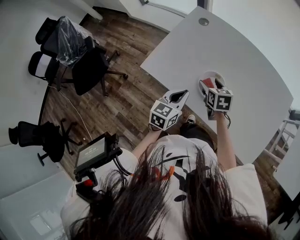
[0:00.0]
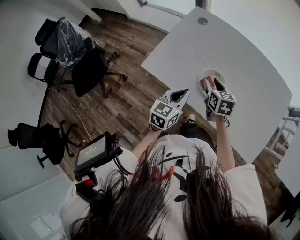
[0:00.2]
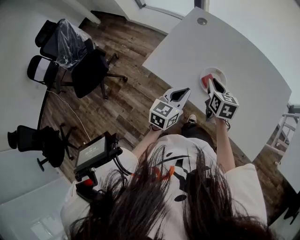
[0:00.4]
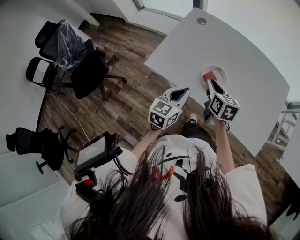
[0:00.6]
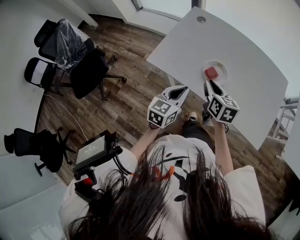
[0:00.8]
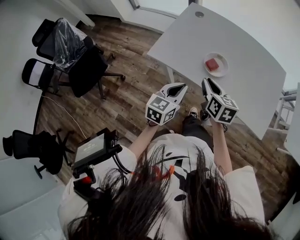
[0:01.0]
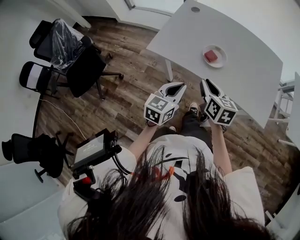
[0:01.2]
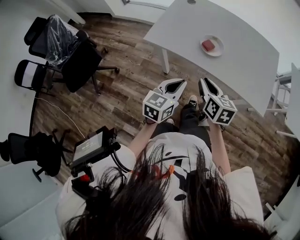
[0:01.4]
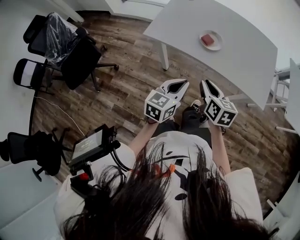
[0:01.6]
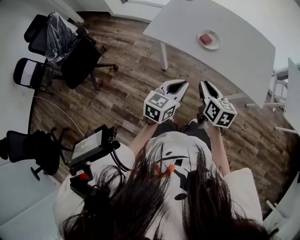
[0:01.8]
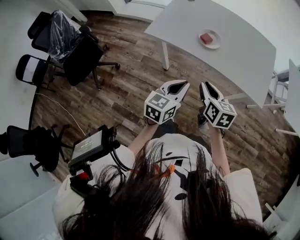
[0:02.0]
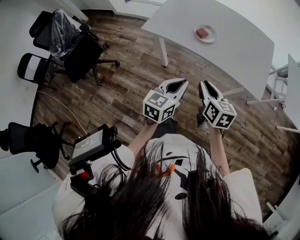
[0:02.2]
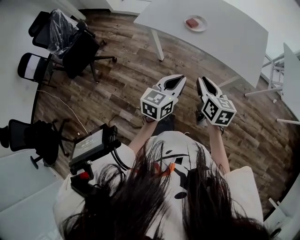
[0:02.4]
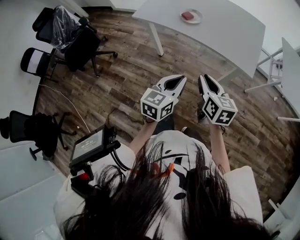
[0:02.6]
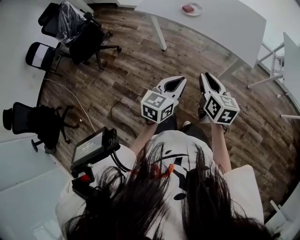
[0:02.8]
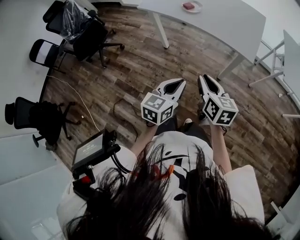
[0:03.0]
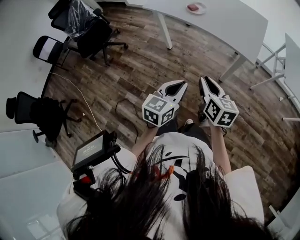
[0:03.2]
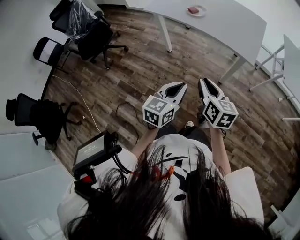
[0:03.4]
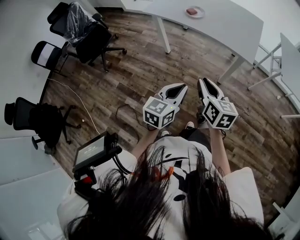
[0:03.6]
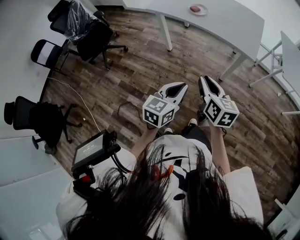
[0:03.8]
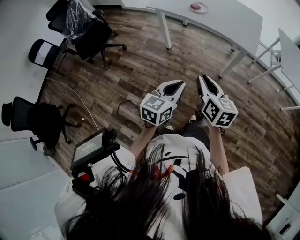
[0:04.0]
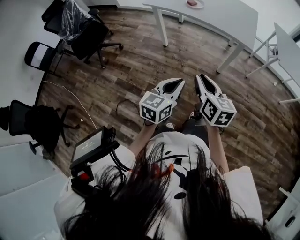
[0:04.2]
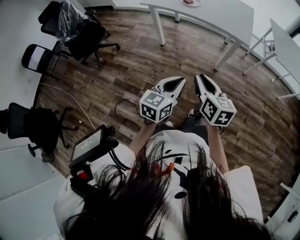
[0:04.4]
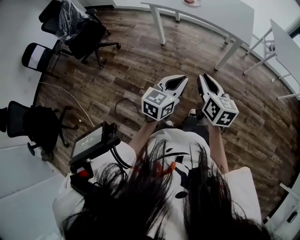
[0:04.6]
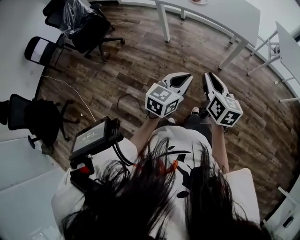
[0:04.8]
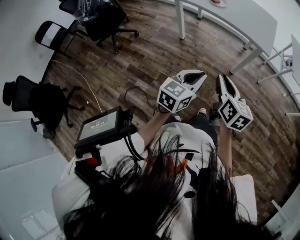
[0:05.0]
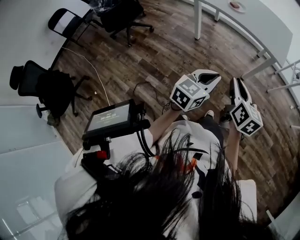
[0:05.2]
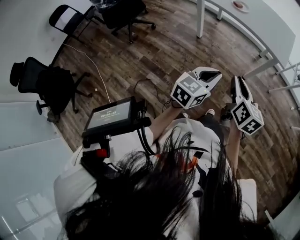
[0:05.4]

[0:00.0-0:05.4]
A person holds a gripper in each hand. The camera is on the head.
0:00.0 to 0:01.4: Both grippers move backward, about 25 cm. The right gripper swivels approximately 20 degrees, and closes its fingers.
0:01.4 to 0:02.8: Both grippers move backward and to the right, some 30 cm.
0:02.8 to 0:04.0: Both grippers travel together backward and to the left, roughly 15 cm.
0:04.0 to 0:05.4: The right gripper goes roughly 5 cm backward.

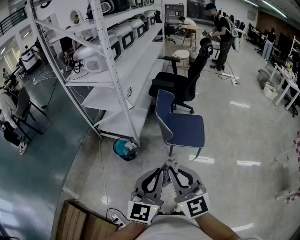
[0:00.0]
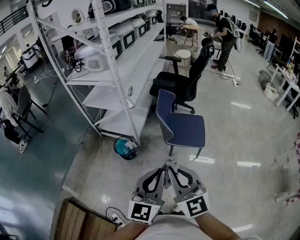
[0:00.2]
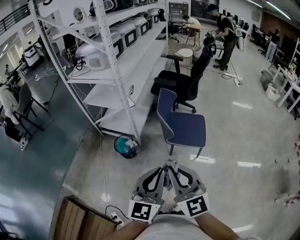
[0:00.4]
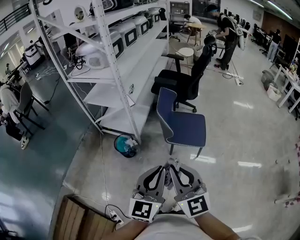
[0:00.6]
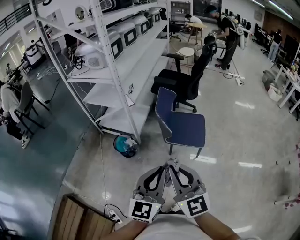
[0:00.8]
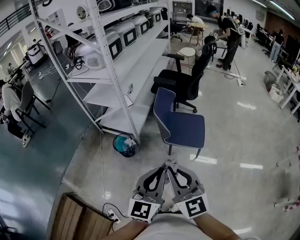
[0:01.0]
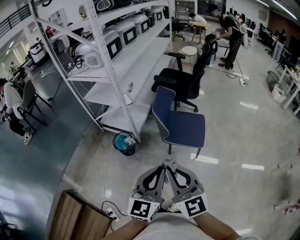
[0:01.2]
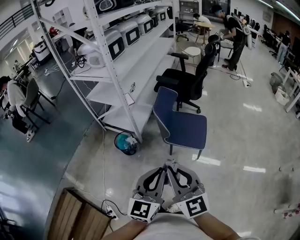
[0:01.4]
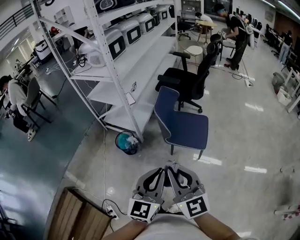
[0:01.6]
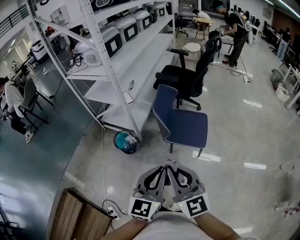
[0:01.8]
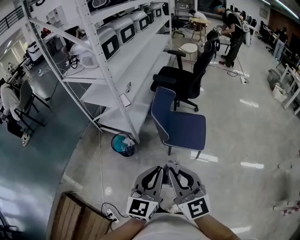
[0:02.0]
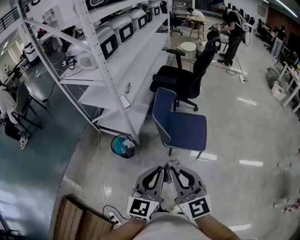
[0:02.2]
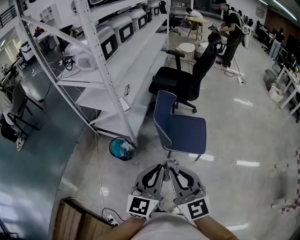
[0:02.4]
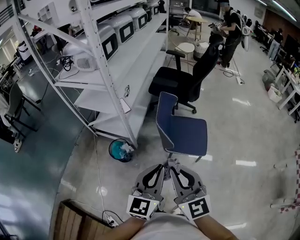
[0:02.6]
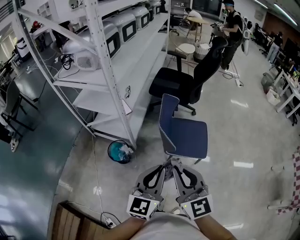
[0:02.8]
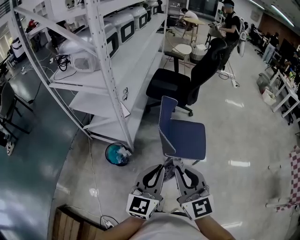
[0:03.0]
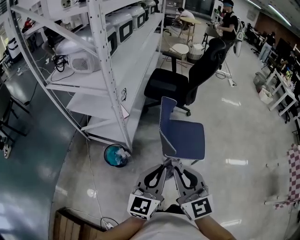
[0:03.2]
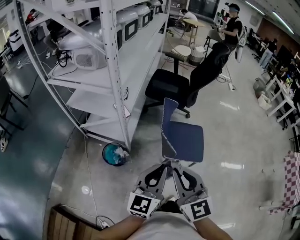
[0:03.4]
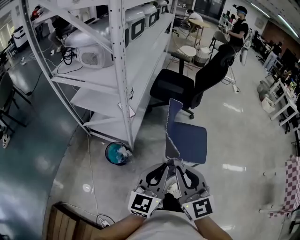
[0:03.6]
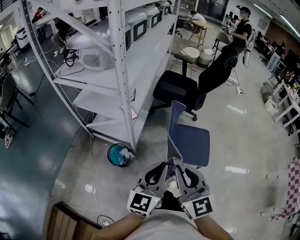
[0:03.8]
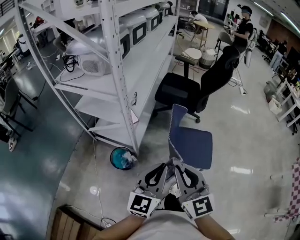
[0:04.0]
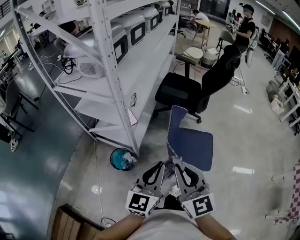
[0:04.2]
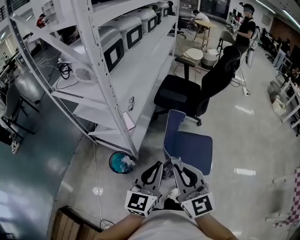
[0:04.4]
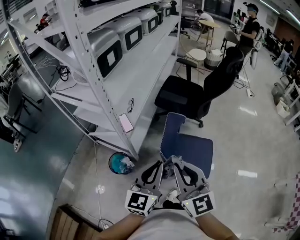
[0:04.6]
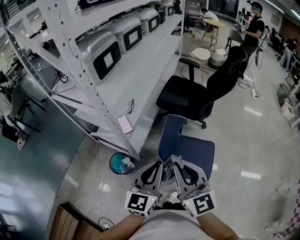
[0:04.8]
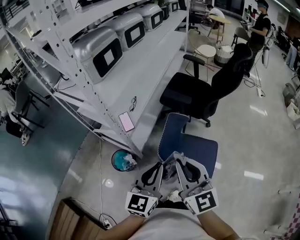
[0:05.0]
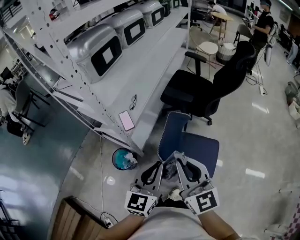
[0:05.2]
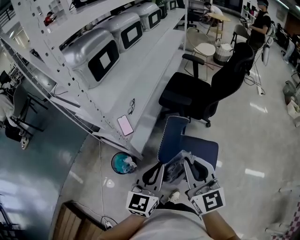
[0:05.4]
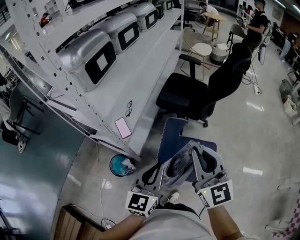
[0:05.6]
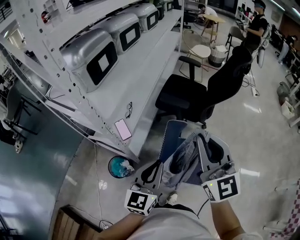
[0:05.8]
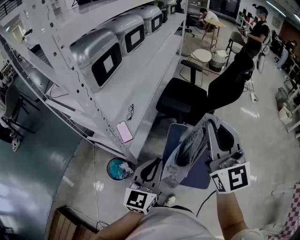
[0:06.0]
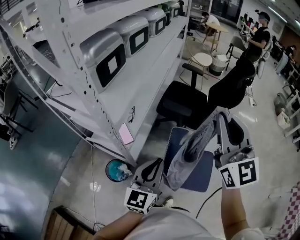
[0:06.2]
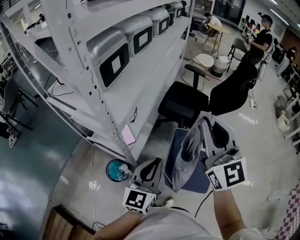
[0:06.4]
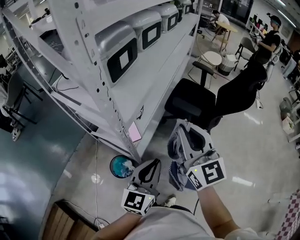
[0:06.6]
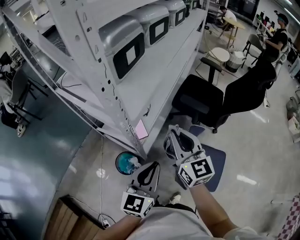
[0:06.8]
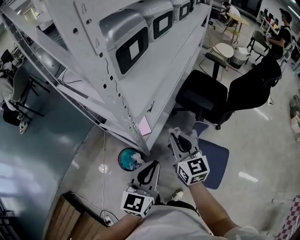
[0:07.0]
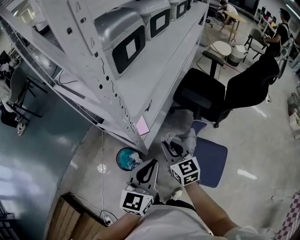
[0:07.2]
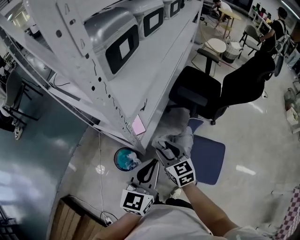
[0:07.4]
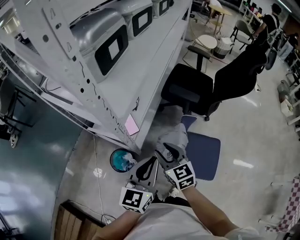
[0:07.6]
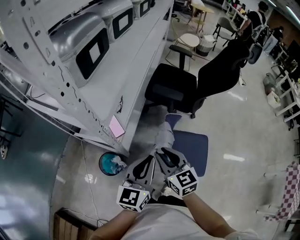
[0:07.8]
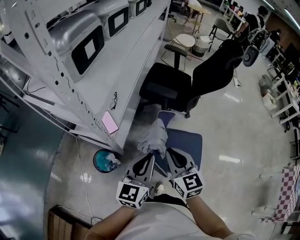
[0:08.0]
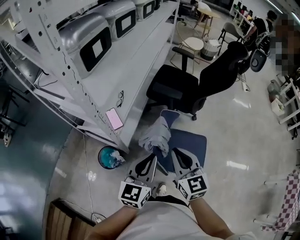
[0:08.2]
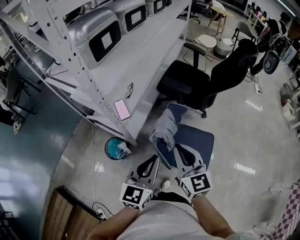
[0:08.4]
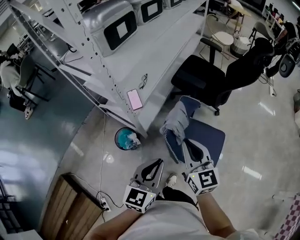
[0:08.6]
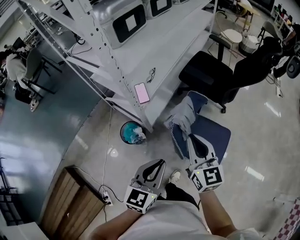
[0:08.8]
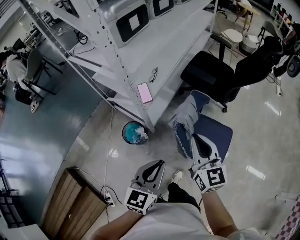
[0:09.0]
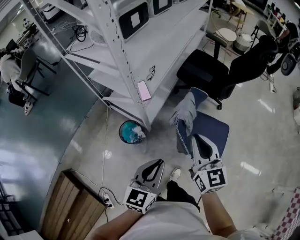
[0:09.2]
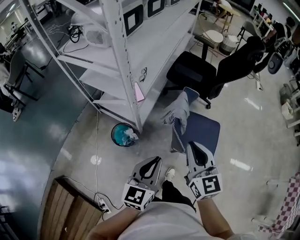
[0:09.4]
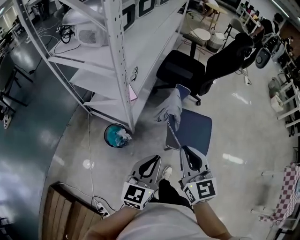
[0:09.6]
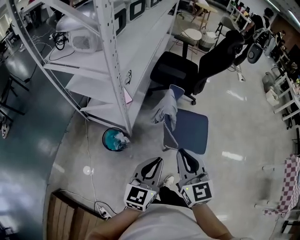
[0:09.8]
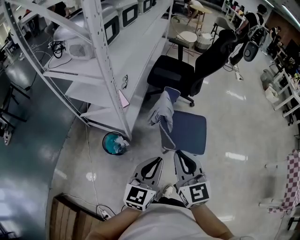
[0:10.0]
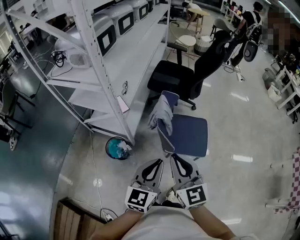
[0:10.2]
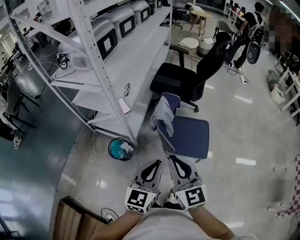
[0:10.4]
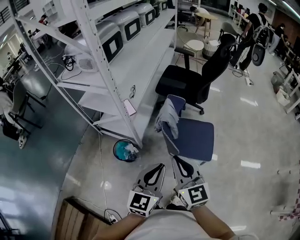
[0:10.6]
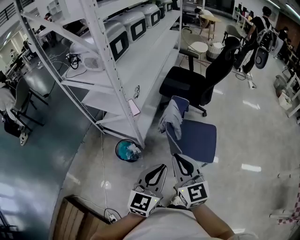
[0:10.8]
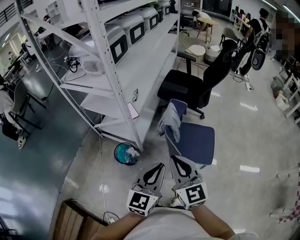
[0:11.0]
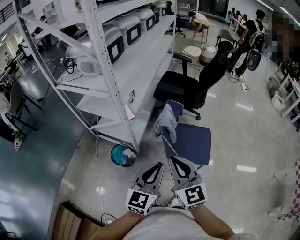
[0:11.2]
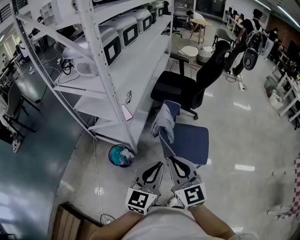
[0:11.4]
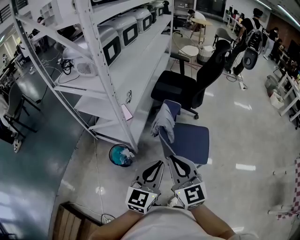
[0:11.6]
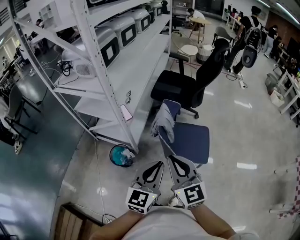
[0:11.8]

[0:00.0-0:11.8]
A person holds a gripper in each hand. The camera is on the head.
0:00.0 to 0:01.4: The two grippers go some 10 cm to the right.
0:01.4 to 0:03.0: The two grippers go some 25 cm forward and to the left.
0:03.0 to 0:04.4: The grippers both shift forward by about 10 cm.
0:04.4 to 0:06.0: The right gripper goes roughly 30 cm forward, upward and to the right, while the left gripper travels forward by some 15 cm.
0:06.0 to 0:07.4: The left gripper moves to the left, about 10 cm; the right gripper heads downward and to the left, covering approximately 40 cm, angles its fingers downward, by roughly 40 degrees, and opens.
0:07.4 to 0:08.8: The right gripper travels to the right, backward and upward by roughly 25 cm, and closes up. Meanwhile the left gripper travels backward and to the right by some 20 cm.
0:08.8 to 0:10.4: The right gripper goes some 20 cm backward. The left gripper is displaced backward by some 10 cm.
0:10.4 to 0:11.8: The grippers make only small movements.

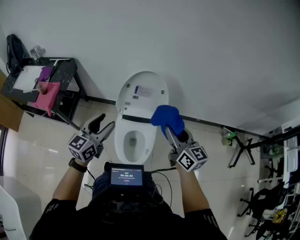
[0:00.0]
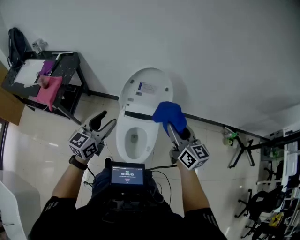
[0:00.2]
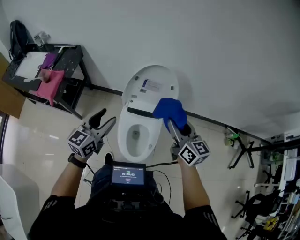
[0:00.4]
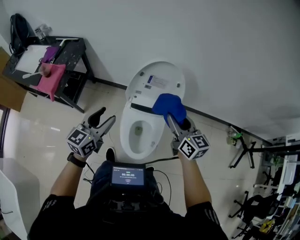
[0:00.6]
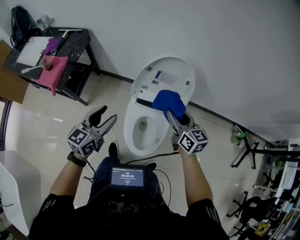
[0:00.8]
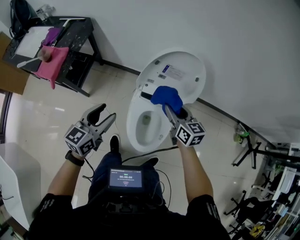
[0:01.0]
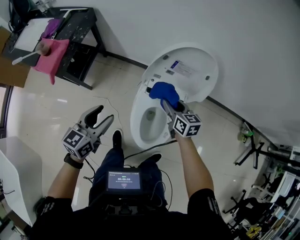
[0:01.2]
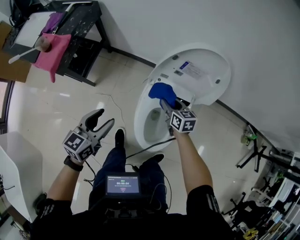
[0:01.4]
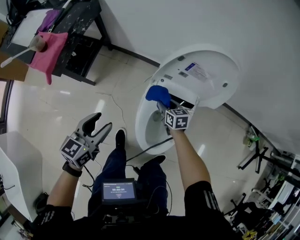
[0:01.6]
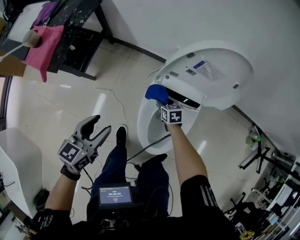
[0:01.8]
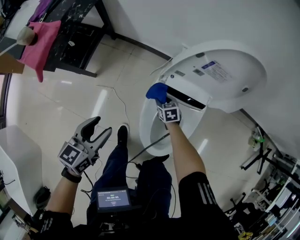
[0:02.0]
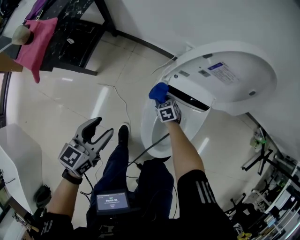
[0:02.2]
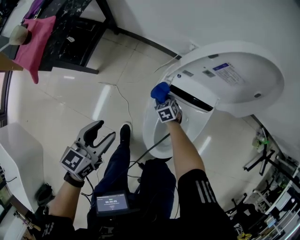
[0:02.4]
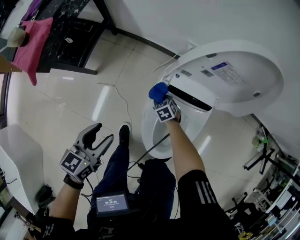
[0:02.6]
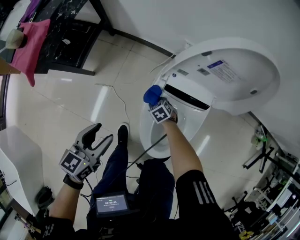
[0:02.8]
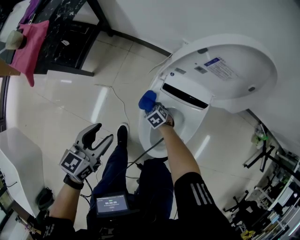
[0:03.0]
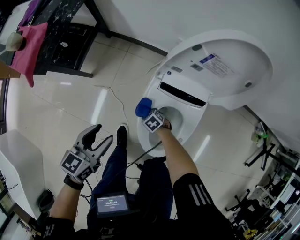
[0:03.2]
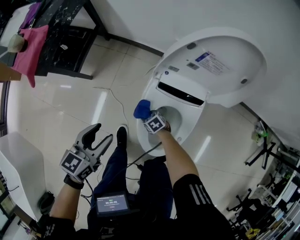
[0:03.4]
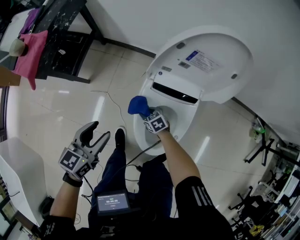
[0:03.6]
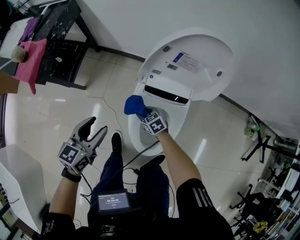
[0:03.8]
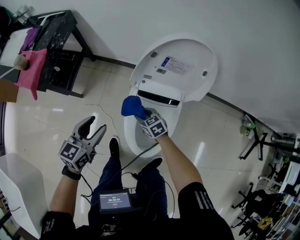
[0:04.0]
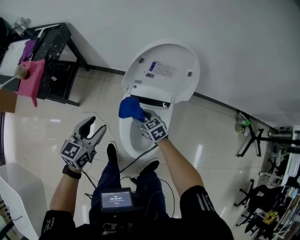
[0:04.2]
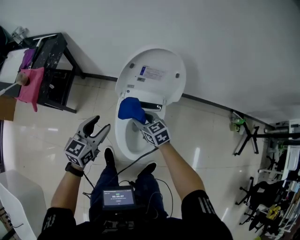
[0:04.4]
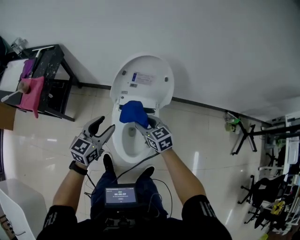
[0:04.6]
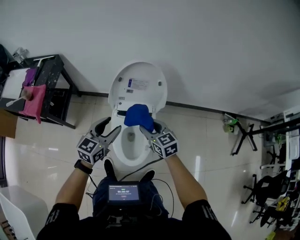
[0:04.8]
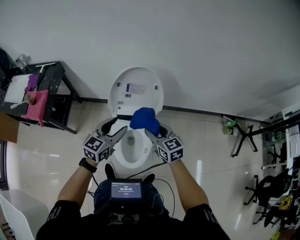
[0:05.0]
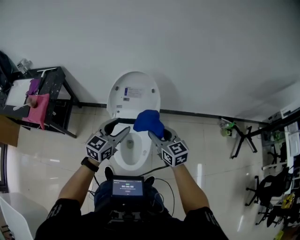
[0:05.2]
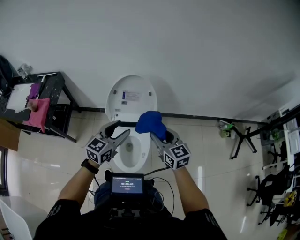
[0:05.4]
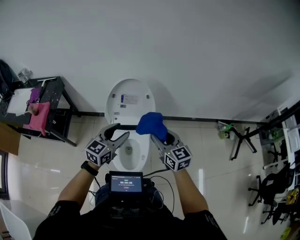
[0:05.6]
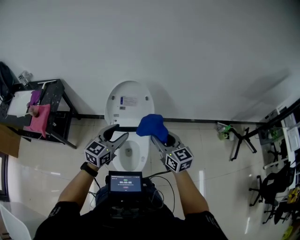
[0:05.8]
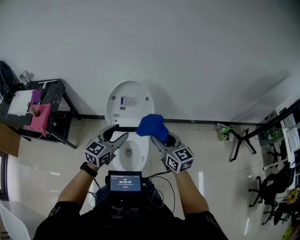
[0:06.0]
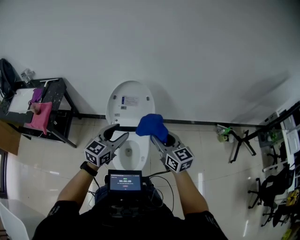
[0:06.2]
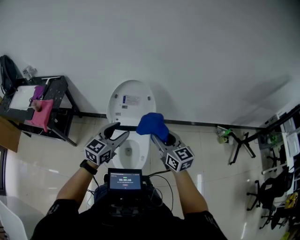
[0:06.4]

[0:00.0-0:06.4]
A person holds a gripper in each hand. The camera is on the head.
0:00.0 to 0:01.6: The right gripper moves downward and forward, roughly 50 cm, and tilts its fingers approximately 40 degrees downward, while the left gripper shifts some 25 cm downward and to the left, and changes its angle by about 20 degrees.
0:01.6 to 0:03.2: The left gripper goes about 10 cm downward, while the right gripper is displaced downward by approximately 25 cm, and changes its angle by some 50 degrees.
0:03.2 to 0:04.8: The right gripper is displaced upward by approximately 50 cm, and tilts its fingers roughly 40 degrees upward. Meanwhile the left gripper moves upward, about 20 cm, and changes its angle by some 30 degrees.
0:04.8 to 0:06.4: The left gripper heads upward and to the right, covering roughly 15 cm. Meanwhile the right gripper shifts about 20 cm upward, to the right and backward, and rotates about 20 degrees.
